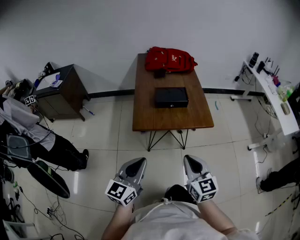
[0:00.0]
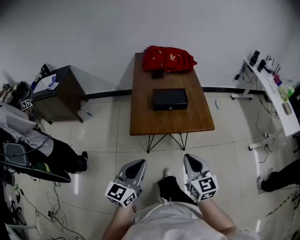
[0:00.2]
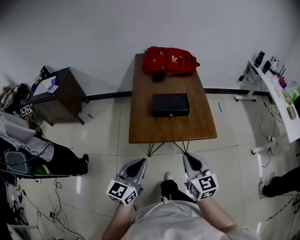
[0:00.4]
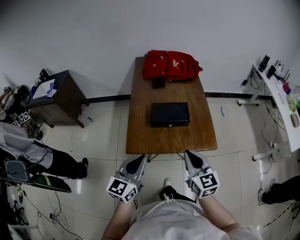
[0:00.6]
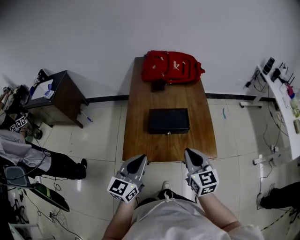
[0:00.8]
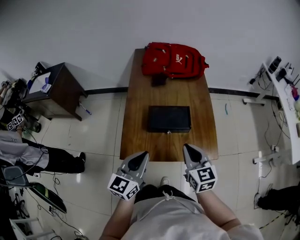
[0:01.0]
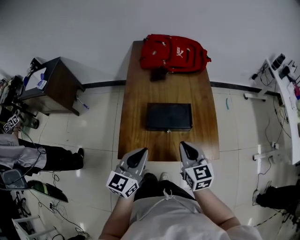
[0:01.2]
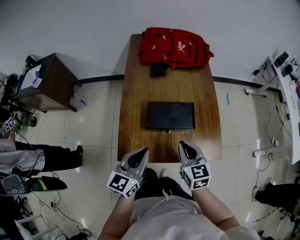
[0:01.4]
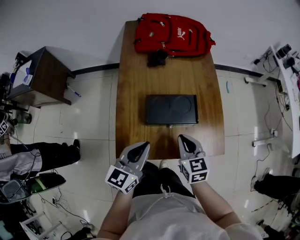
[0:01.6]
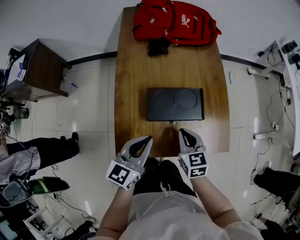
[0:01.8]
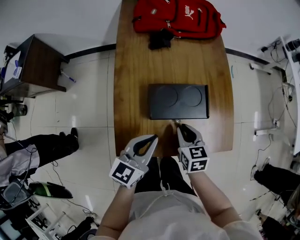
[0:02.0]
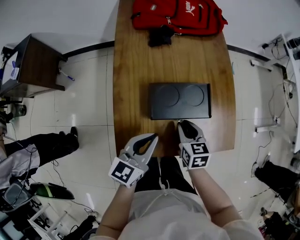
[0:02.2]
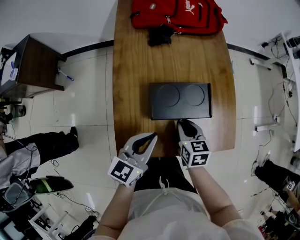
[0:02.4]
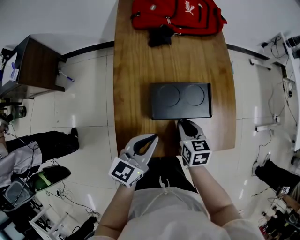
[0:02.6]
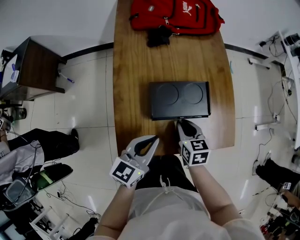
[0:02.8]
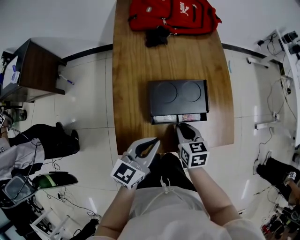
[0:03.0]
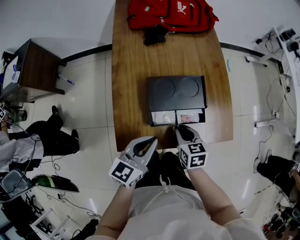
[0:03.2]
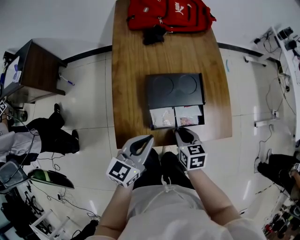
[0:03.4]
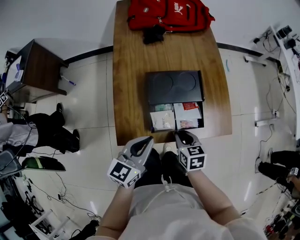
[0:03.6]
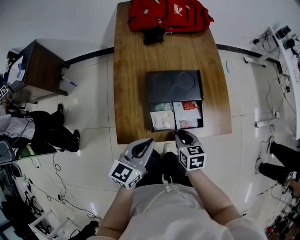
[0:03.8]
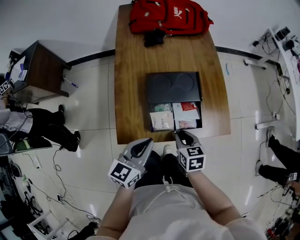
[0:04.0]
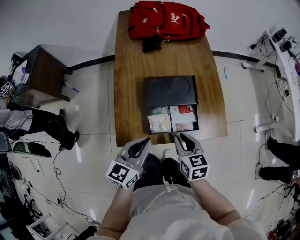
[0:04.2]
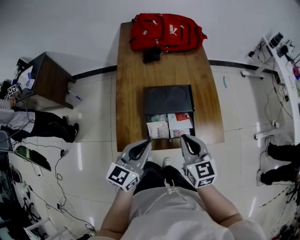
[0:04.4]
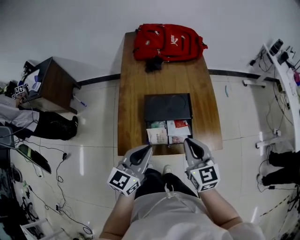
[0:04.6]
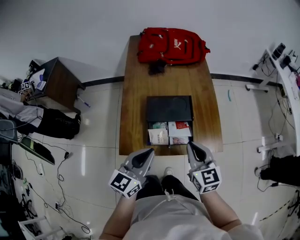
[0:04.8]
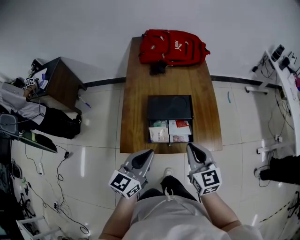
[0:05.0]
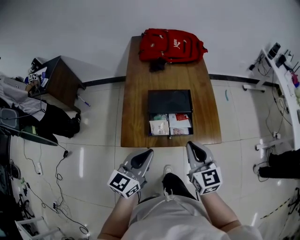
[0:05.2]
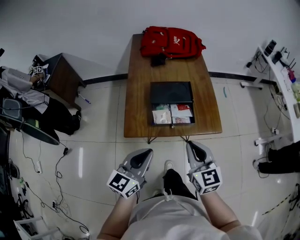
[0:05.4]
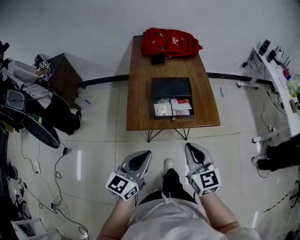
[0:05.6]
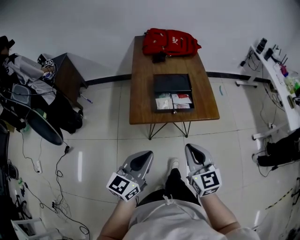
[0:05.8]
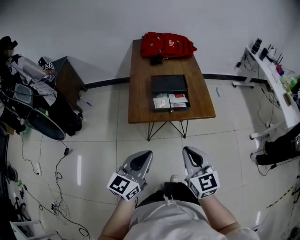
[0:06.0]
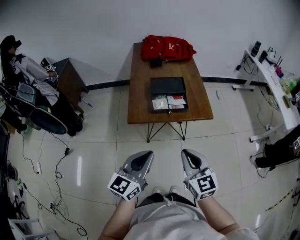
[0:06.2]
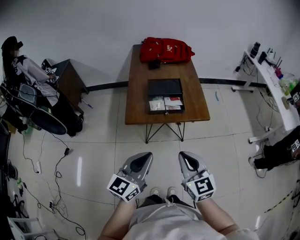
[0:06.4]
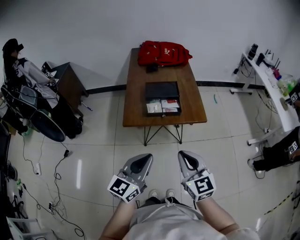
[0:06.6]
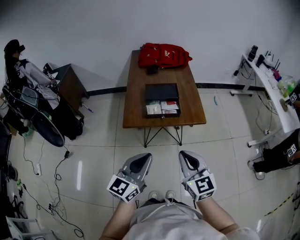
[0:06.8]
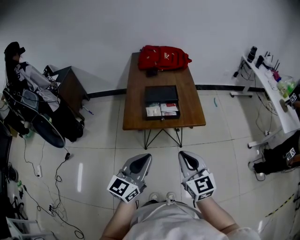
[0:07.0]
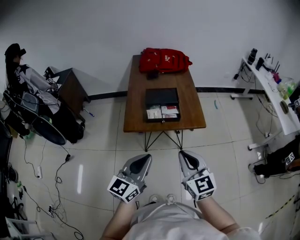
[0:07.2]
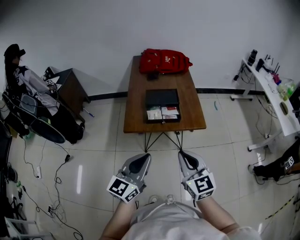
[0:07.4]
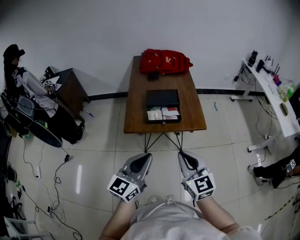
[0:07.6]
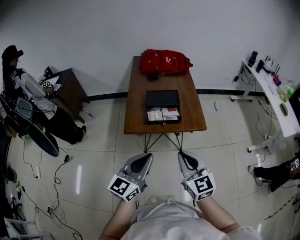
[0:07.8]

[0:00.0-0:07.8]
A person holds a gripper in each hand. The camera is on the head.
0:00.0 to 0:01.6: Both grippers travel together forward, some 40 cm.
0:01.6 to 0:03.2: The left gripper travels downward by approximately 5 cm. Meanwhile the right gripper travels downward by roughly 10 cm.
0:03.2 to 0:04.6: The left gripper moves upward, roughly 10 cm. The right gripper travels upward by about 20 cm, and changes its angle by about 30 degrees.
0:04.6 to 0:06.2: Both grippers move backward, some 30 cm.
0:06.2 to 0:07.8: The left gripper shifts by approximately 5 cm.

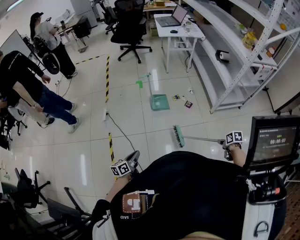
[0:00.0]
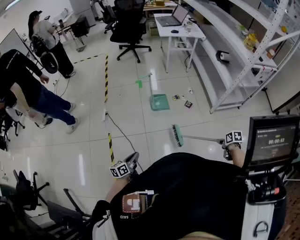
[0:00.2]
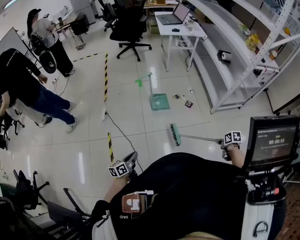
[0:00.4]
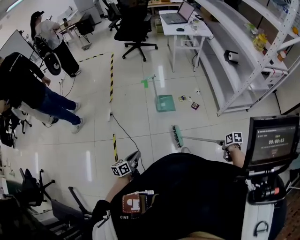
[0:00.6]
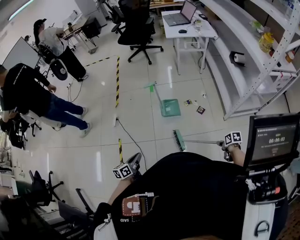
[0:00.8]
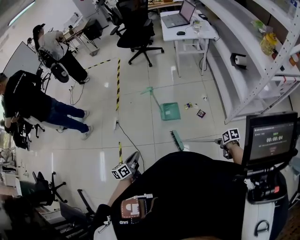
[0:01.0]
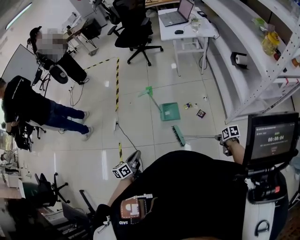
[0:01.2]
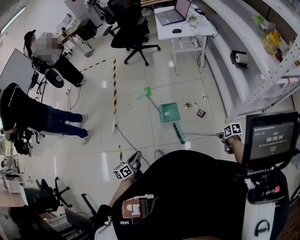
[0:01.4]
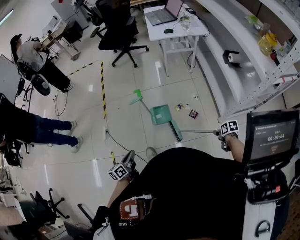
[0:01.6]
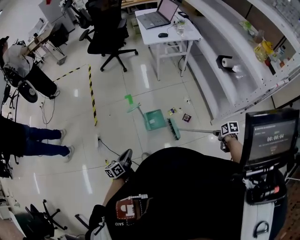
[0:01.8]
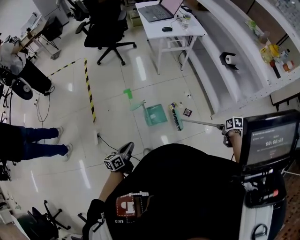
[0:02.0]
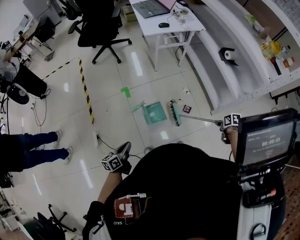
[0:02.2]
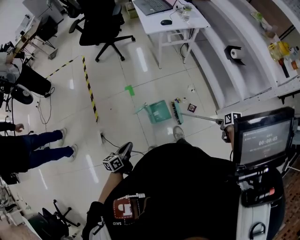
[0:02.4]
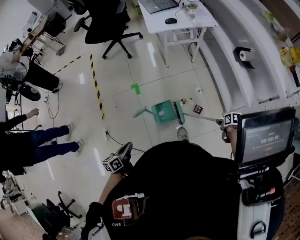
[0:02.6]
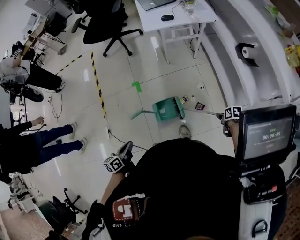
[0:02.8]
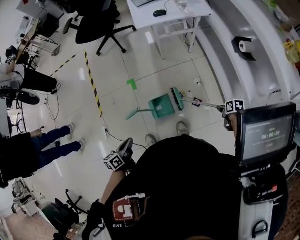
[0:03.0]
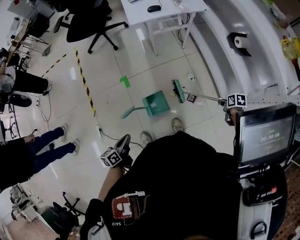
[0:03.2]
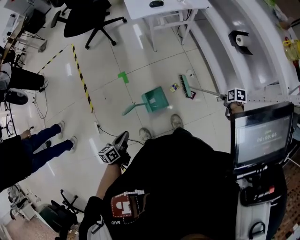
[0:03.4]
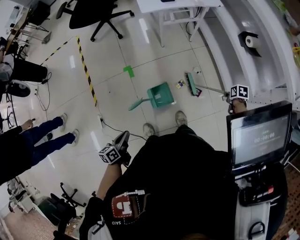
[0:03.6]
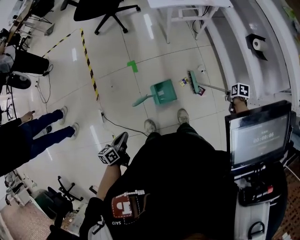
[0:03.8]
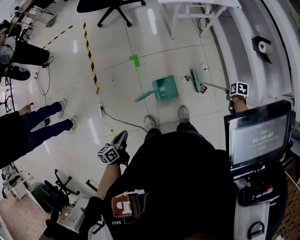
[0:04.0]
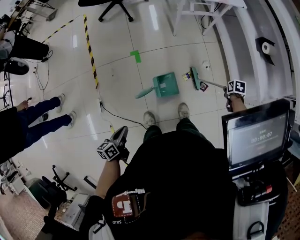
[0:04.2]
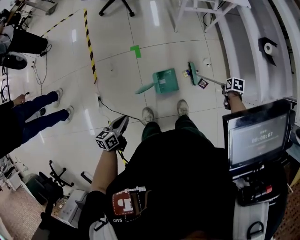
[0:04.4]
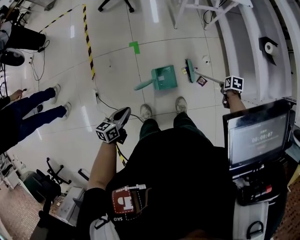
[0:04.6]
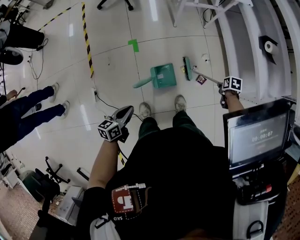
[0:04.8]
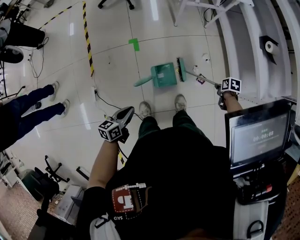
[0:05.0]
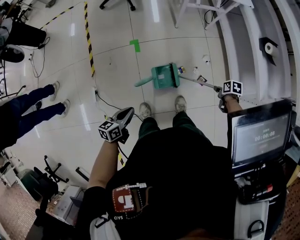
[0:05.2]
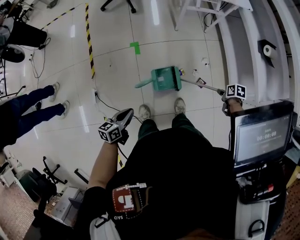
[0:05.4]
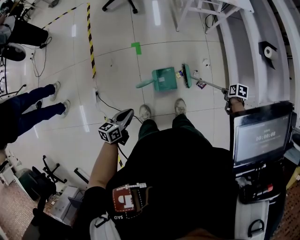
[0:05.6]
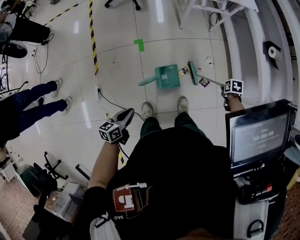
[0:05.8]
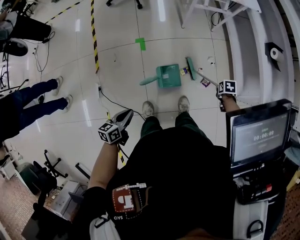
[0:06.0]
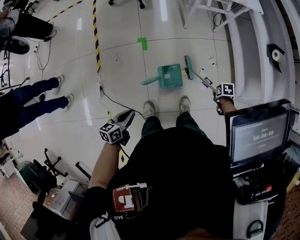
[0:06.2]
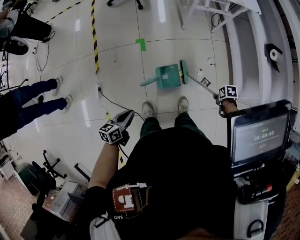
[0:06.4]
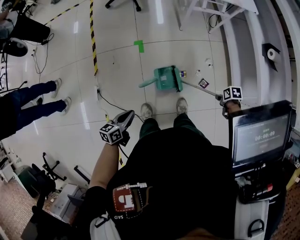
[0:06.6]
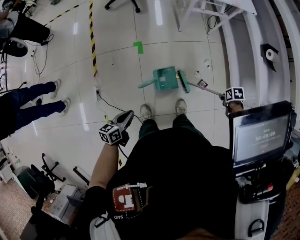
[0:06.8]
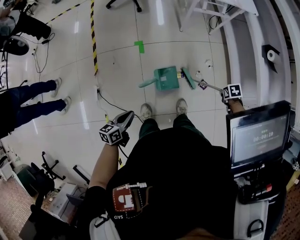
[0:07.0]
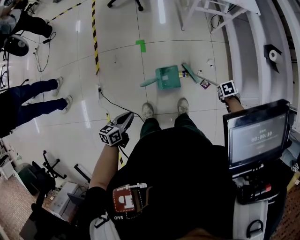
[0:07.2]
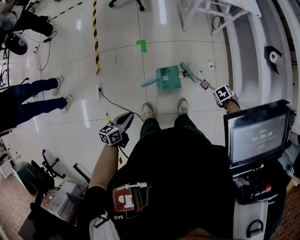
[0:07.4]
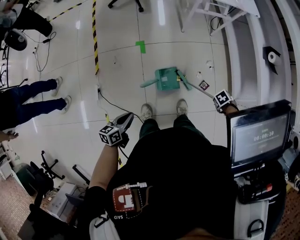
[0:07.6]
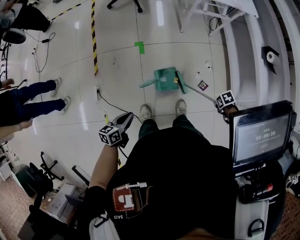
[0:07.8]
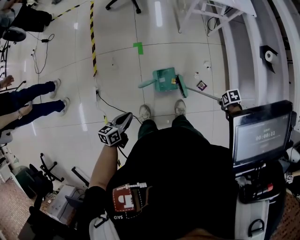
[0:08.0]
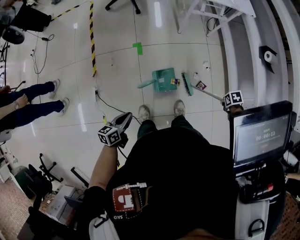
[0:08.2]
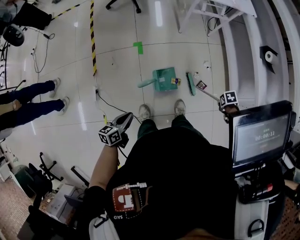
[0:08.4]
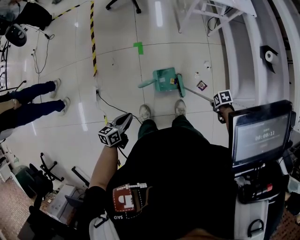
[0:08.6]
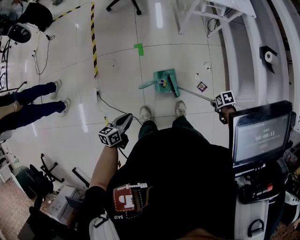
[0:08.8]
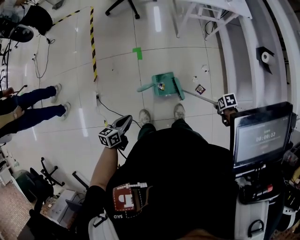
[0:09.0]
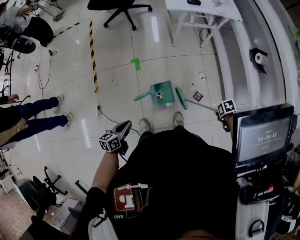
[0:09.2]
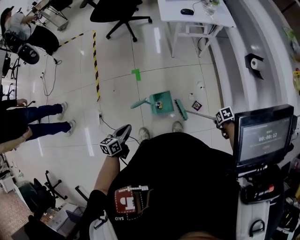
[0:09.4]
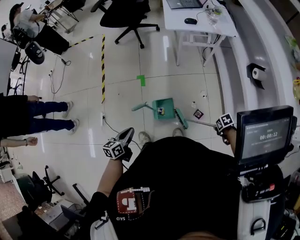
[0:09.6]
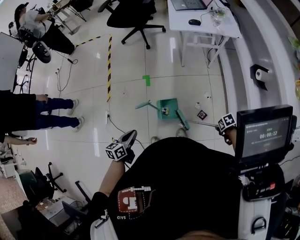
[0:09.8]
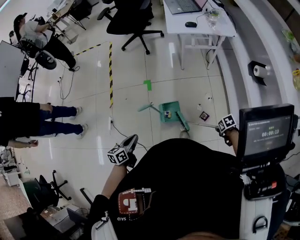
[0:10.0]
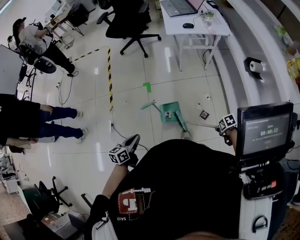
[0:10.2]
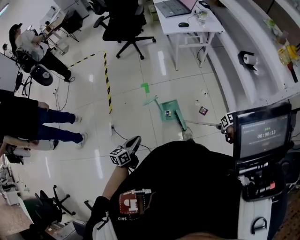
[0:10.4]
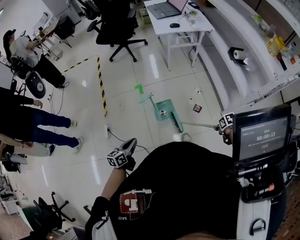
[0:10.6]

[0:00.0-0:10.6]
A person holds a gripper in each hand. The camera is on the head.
0:00.0 to 0:01.6: The left gripper moves approximately 35 cm.
0:01.6 to 0:03.0: The left gripper changes place by some 25 cm.
0:03.0 to 0:04.6: The left gripper shifts by some 10 cm.
0:09.0 to 0:10.6: The left gripper shifts by about 20 cm.

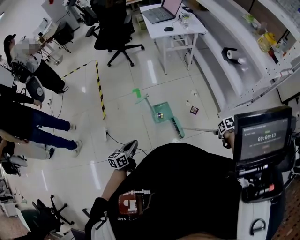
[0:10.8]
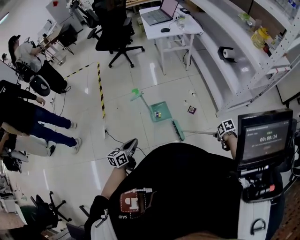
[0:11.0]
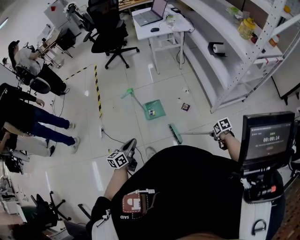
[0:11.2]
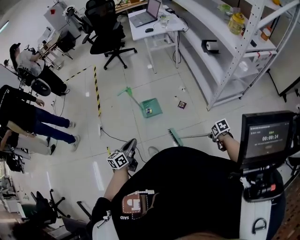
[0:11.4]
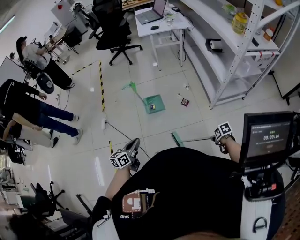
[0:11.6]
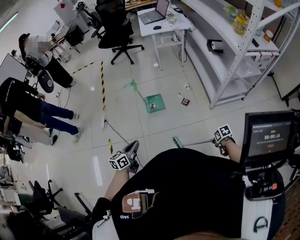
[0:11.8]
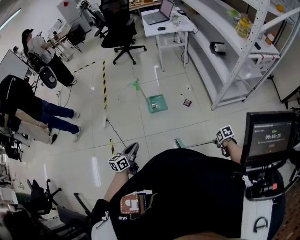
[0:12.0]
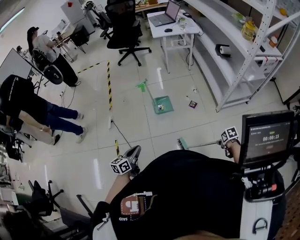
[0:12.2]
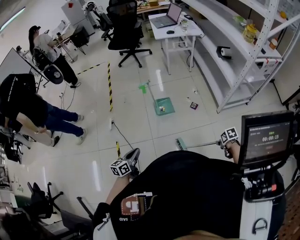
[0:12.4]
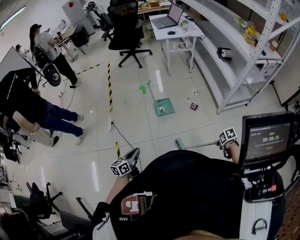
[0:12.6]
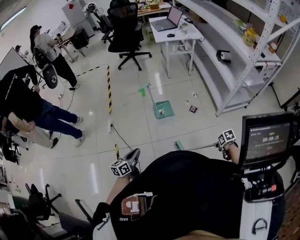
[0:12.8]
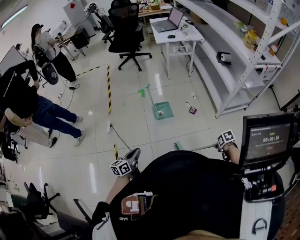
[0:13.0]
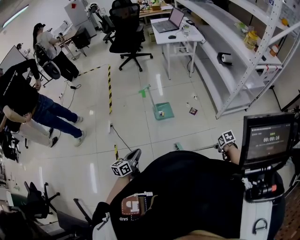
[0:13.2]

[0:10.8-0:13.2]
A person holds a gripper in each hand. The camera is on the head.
0:10.8 to 0:12.0: The left gripper shifts by about 30 cm.
0:12.0 to 0:13.2: The left gripper shifts by approximately 10 cm.

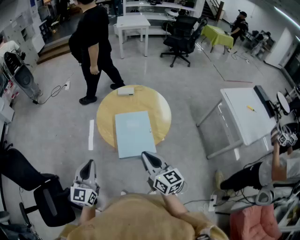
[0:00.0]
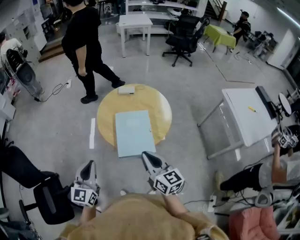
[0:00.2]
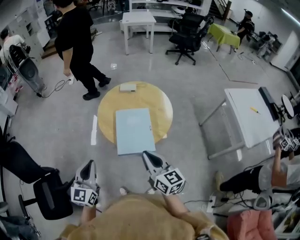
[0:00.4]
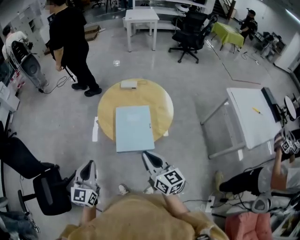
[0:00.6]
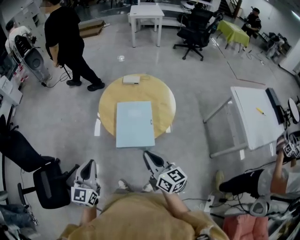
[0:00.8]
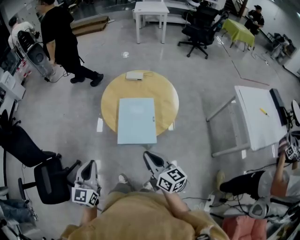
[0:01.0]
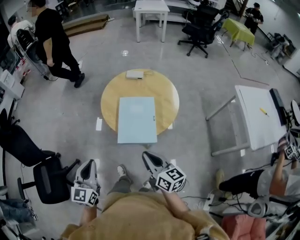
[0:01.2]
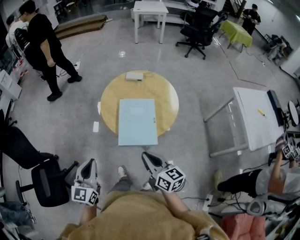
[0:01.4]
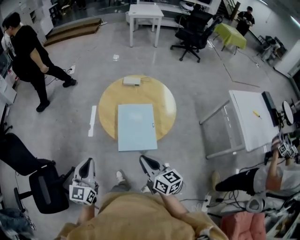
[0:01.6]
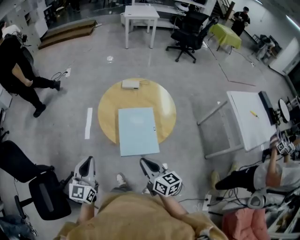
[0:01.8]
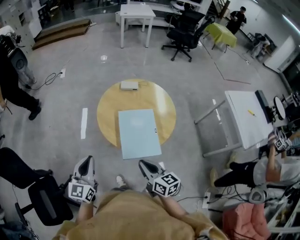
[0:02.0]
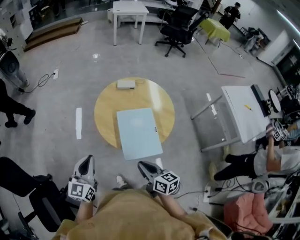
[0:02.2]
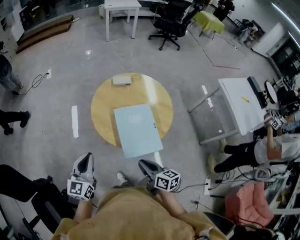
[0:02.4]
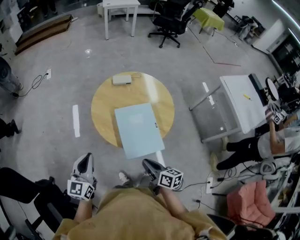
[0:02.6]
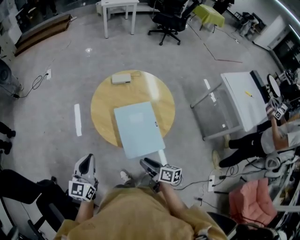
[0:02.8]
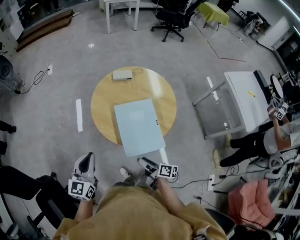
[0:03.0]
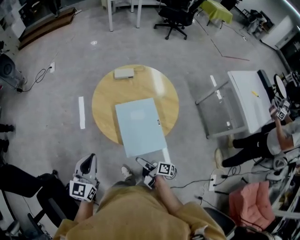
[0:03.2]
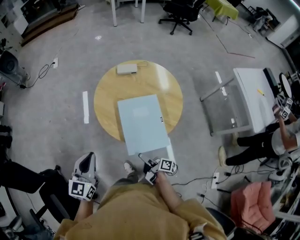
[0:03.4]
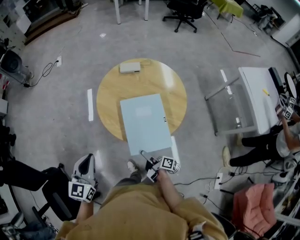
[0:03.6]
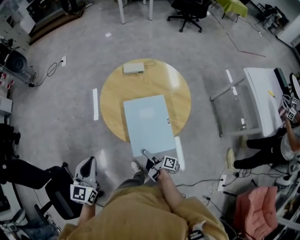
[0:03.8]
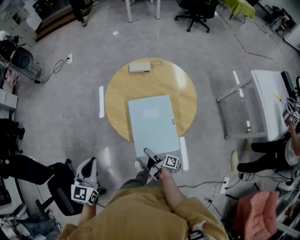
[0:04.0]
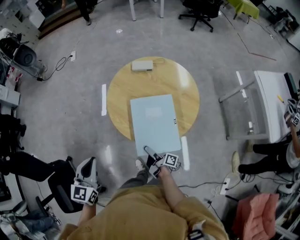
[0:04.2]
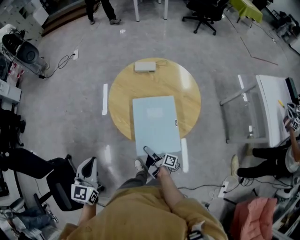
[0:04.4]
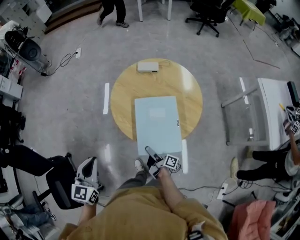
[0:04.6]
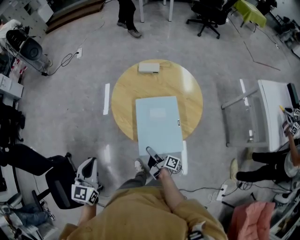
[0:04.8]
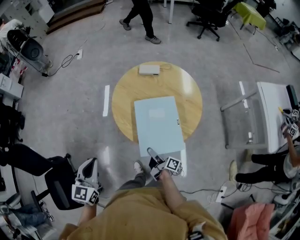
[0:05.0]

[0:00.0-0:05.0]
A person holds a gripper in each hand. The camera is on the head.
0:00.0 to 0:01.6: The right gripper travels downward by approximately 5 cm.
0:01.6 to 0:03.4: The right gripper travels downward by approximately 25 cm, rolls clockwise, seen from behind, by some 70 degrees, and opens up. The left gripper moves forward, about 15 cm.
0:03.4 to 0:05.0: The right gripper shifts about 5 cm forward.
